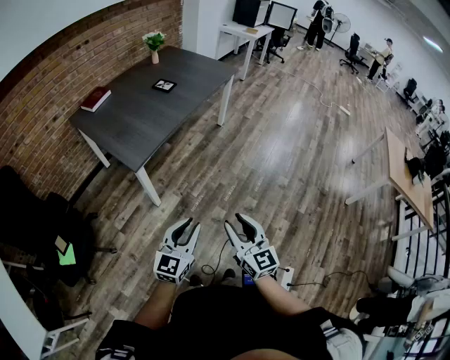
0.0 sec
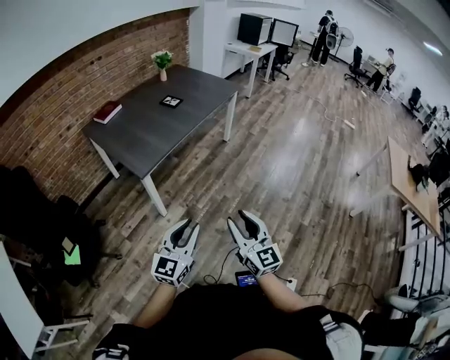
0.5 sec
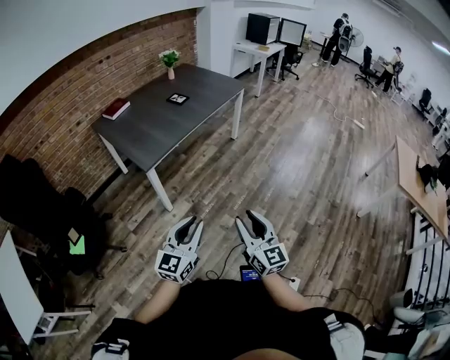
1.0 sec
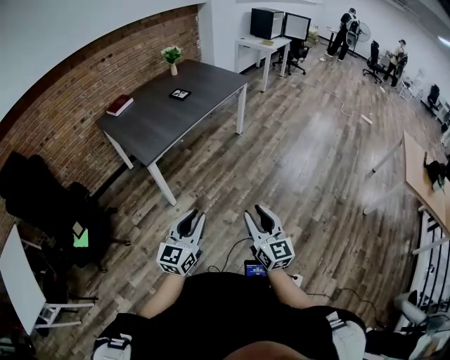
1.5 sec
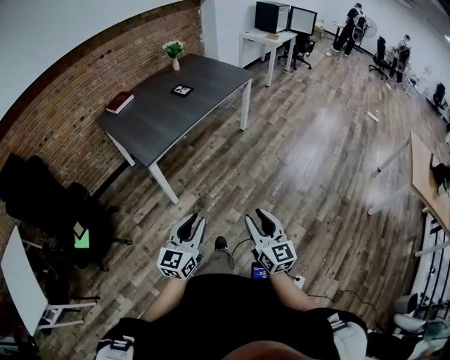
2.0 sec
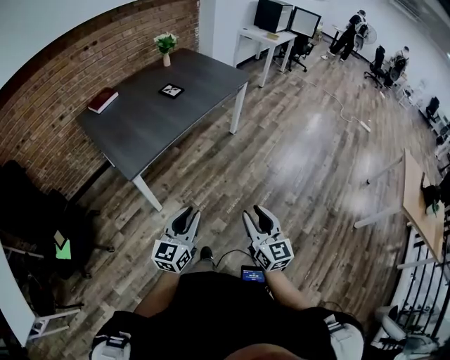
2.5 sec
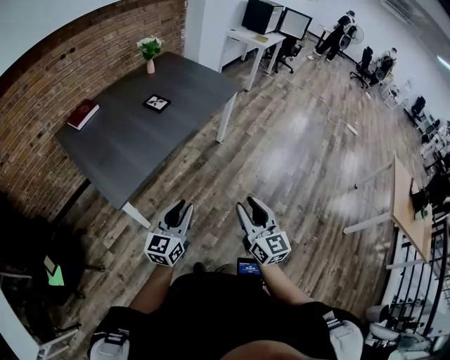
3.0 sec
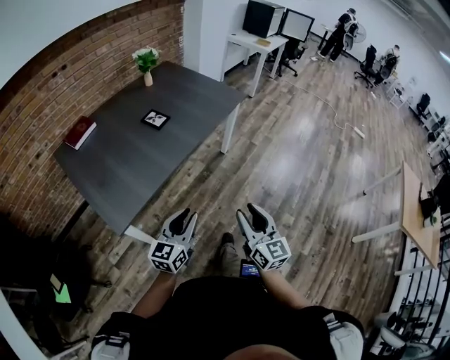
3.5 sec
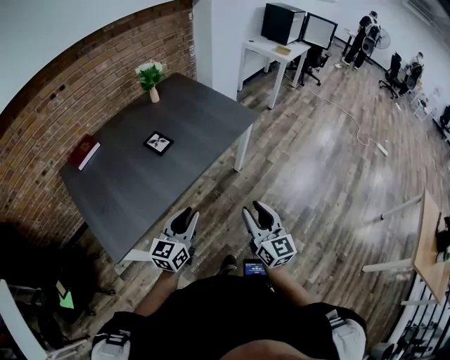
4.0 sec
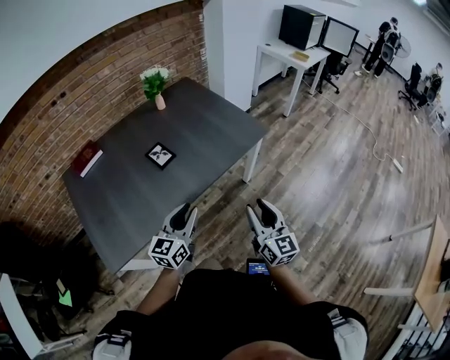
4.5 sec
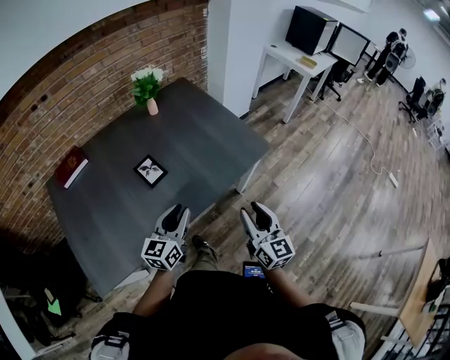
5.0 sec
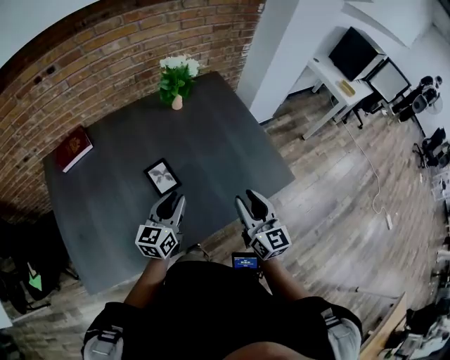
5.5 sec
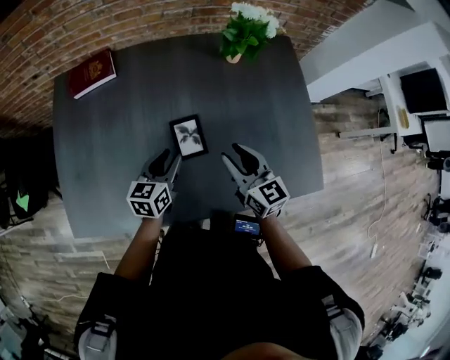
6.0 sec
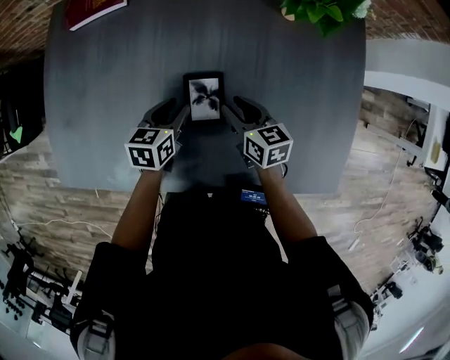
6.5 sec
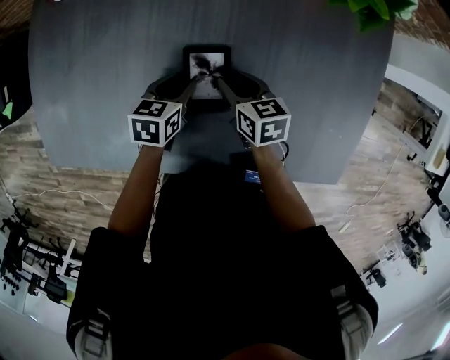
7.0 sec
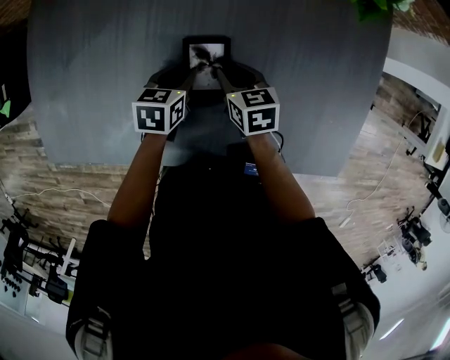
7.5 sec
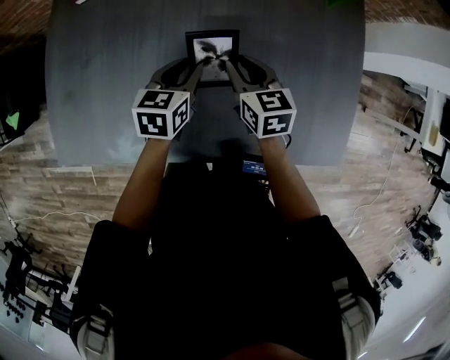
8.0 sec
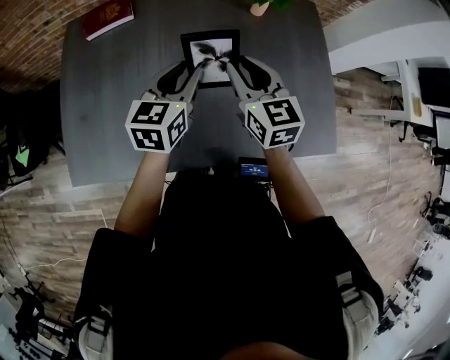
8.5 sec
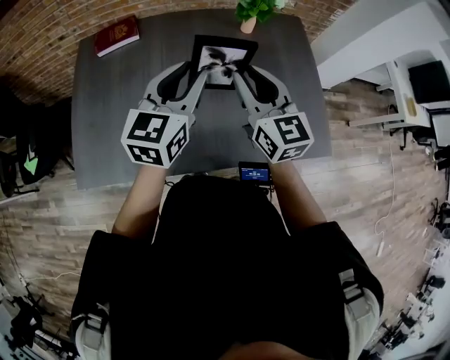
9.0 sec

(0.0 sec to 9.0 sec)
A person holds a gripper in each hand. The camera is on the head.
0.0 sec - 2.0 sec: The left gripper goes approximately 10 cm to the right and backward, while the right gripper travels to the right by approximately 15 cm.
2.0 sec - 4.5 sec: The pair of grippers is taken forward, approximately 80 cm.
4.5 sec - 7.0 sec: Both grippers are carried about 50 cm. The left gripper tilts its fingers about 50 degrees downward, while the right gripper points its fingers roughly 50 degrees further downward.
7.0 sec - 9.0 sec: Both grippers travel together upward, about 40 cm. The right gripper tips its fingers upward by roughly 40 degrees. Meanwhile the left gripper tips its fingers upward by about 40 degrees.

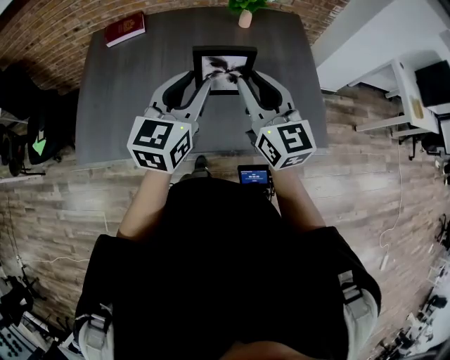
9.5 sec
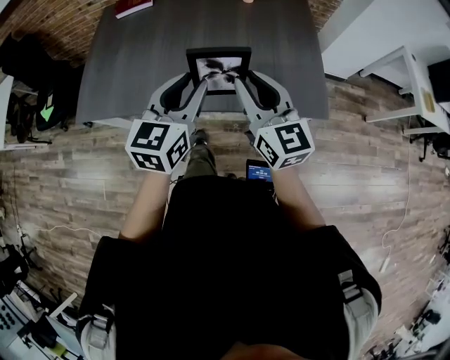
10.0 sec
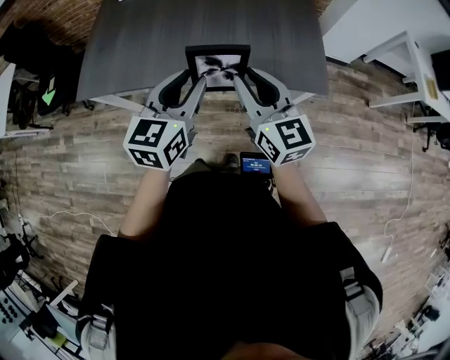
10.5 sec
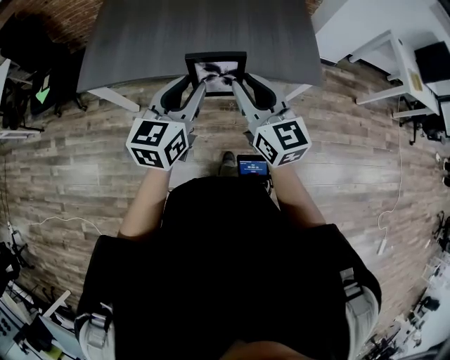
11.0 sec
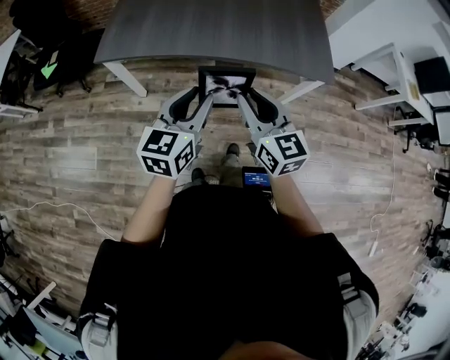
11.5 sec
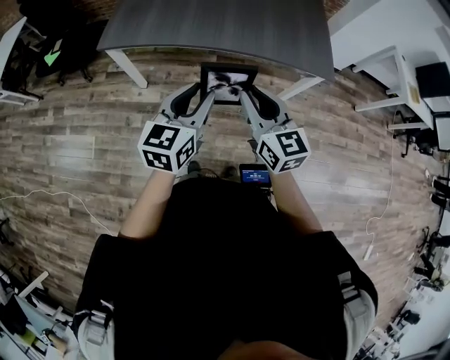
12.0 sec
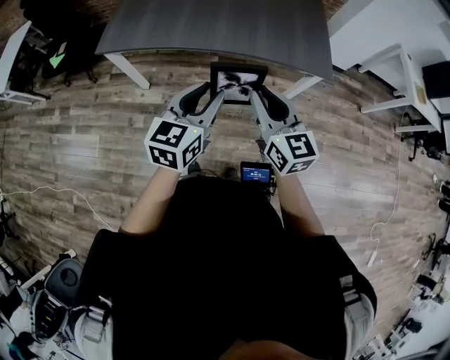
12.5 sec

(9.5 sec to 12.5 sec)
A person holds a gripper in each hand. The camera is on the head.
9.5 sec - 11.0 sec: Both grippers move backward, roughly 30 cm.
11.0 sec - 12.5 sec: The grippers both shift backward by approximately 15 cm.

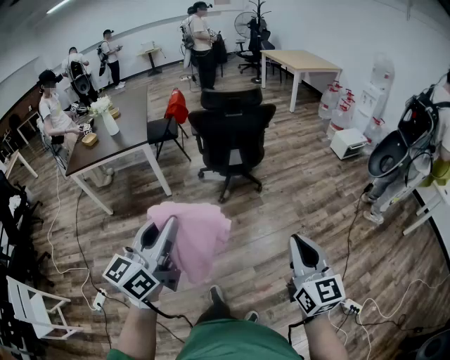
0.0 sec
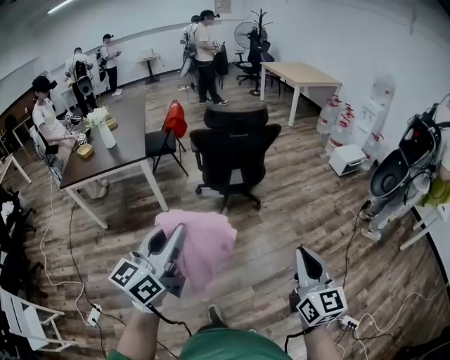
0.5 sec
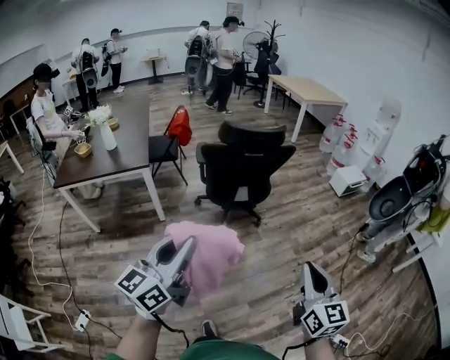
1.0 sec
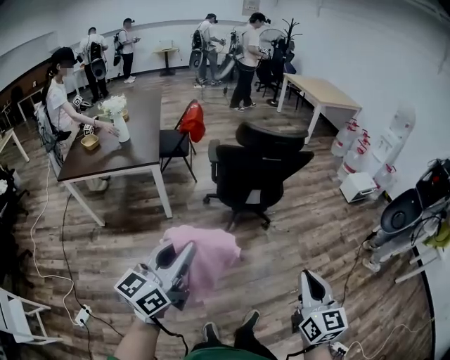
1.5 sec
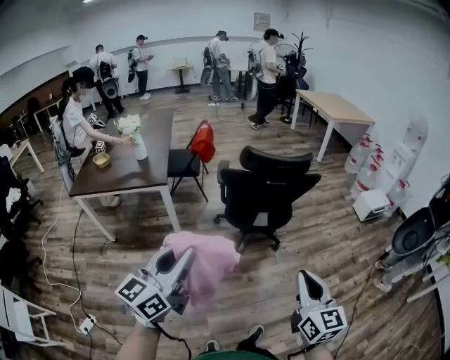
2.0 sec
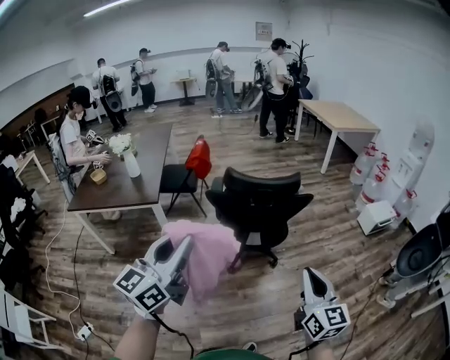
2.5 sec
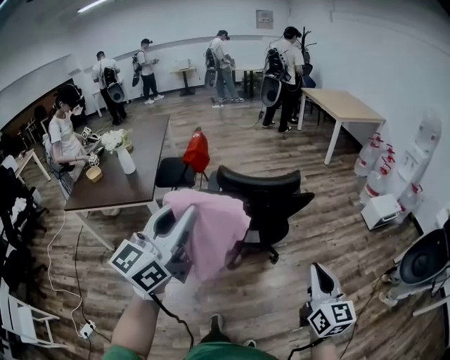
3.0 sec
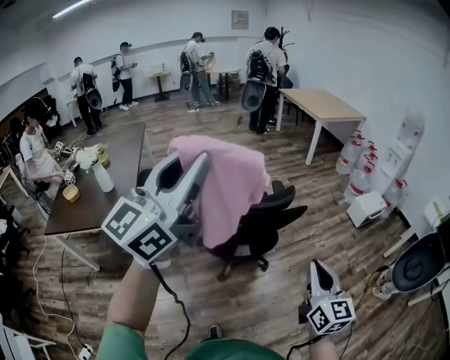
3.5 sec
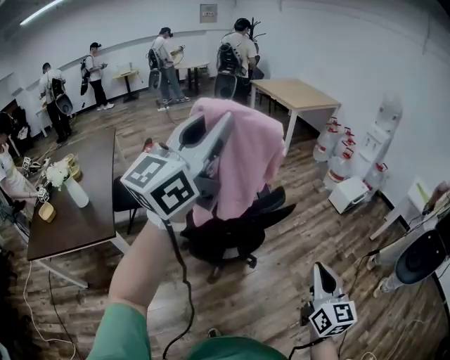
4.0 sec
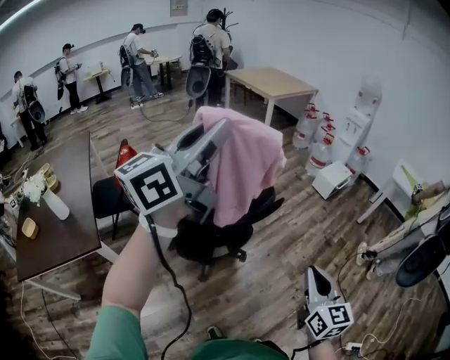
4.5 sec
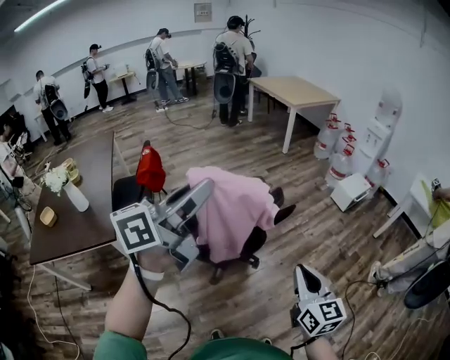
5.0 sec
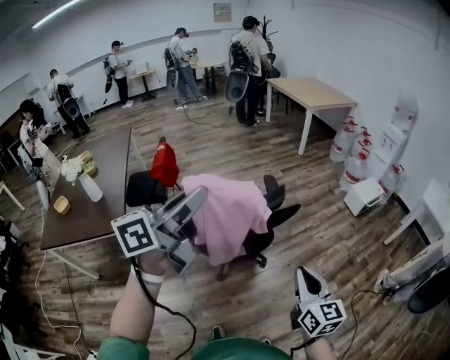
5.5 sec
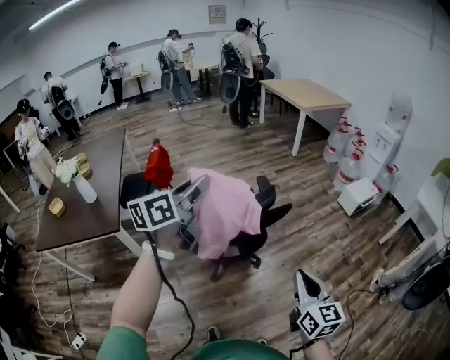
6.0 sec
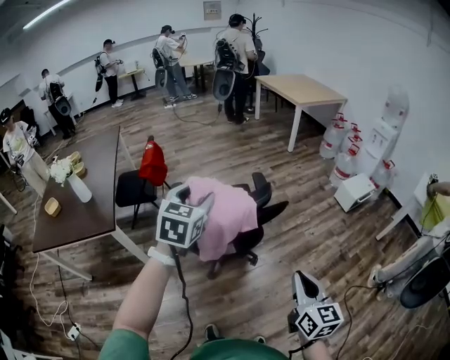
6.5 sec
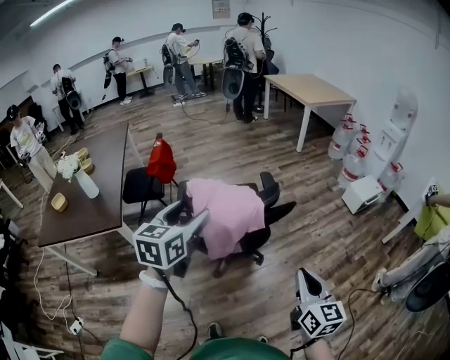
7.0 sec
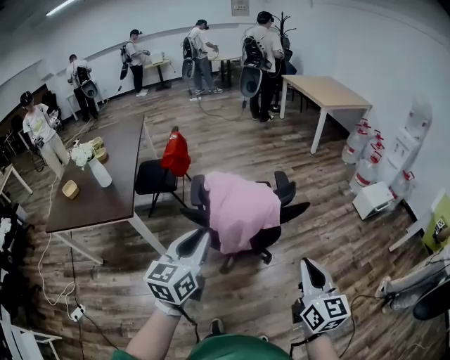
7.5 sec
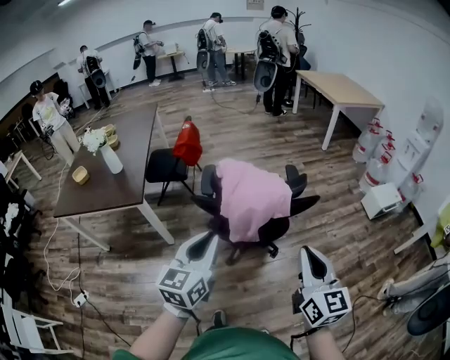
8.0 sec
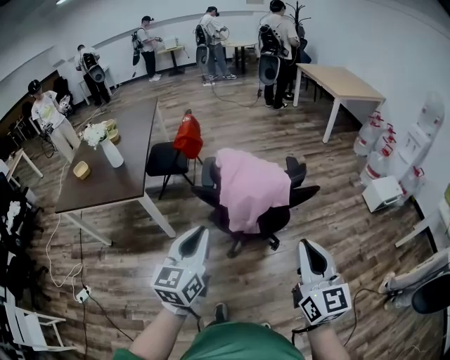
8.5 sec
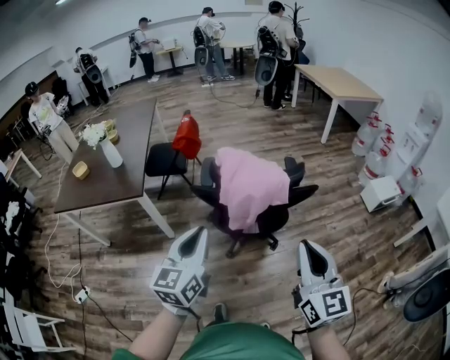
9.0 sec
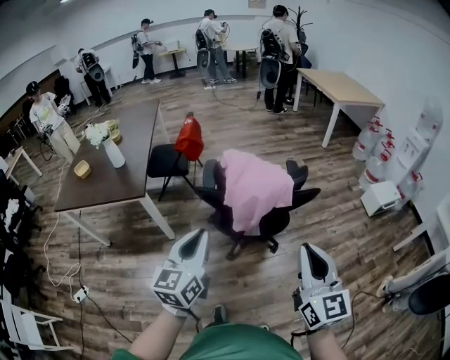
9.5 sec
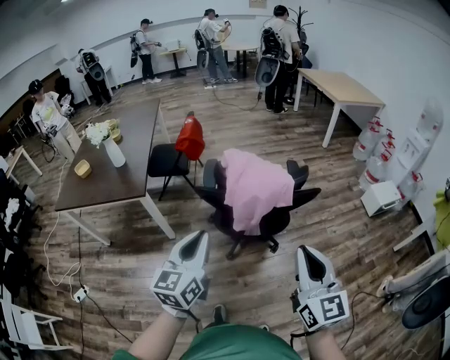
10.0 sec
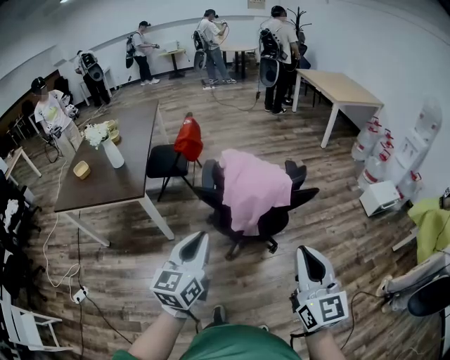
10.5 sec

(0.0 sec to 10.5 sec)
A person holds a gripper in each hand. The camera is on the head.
0.0 sec - 2.0 sec: The two grippers go about 30 cm forward and to the left.
2.0 sec - 4.0 sec: The left gripper moves forward and upward, about 50 cm, and changes its angle by approximately 30 degrees, while the right gripper heads forward, covering about 30 cm, and rotates some 20 degrees.
4.0 sec - 6.5 sec: The left gripper travels downward by approximately 25 cm, angles its fingers downward, by roughly 50 degrees, and opens its fingers, while the right gripper shifts some 5 cm downward.
6.5 sec - 8.5 sec: The left gripper shifts approximately 20 cm backward and to the left, rotates some 30 degrees, and closes up, while the right gripper shifts approximately 10 cm upward and to the left.
8.5 sec - 10.5 sec: The grippers stay close to where they were, moving slightly.

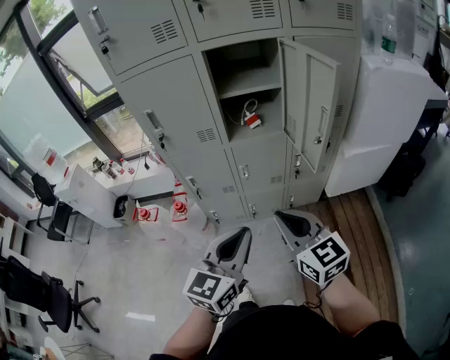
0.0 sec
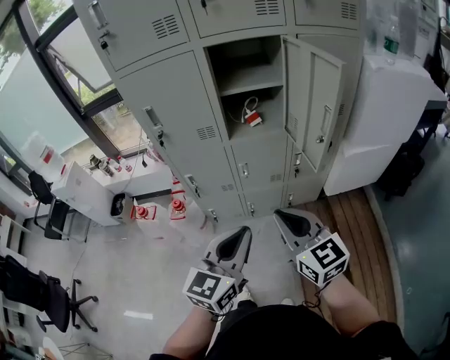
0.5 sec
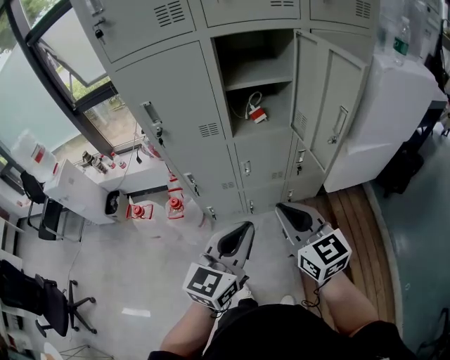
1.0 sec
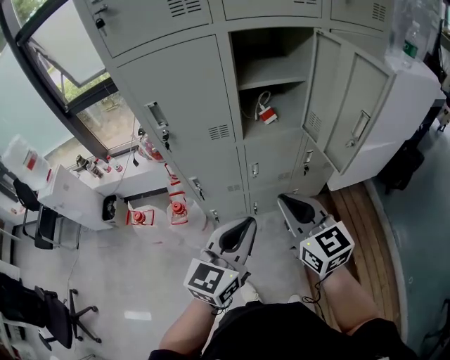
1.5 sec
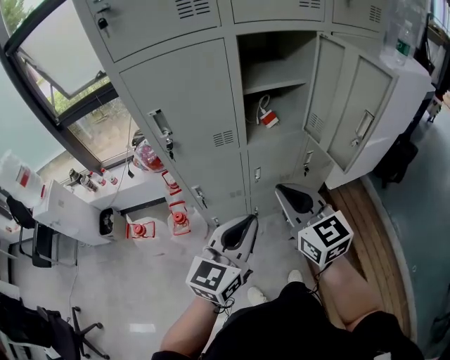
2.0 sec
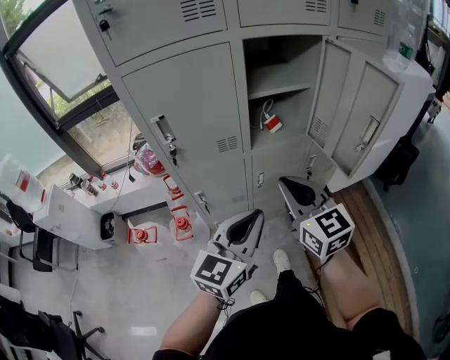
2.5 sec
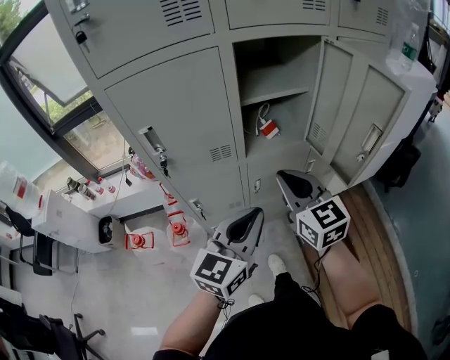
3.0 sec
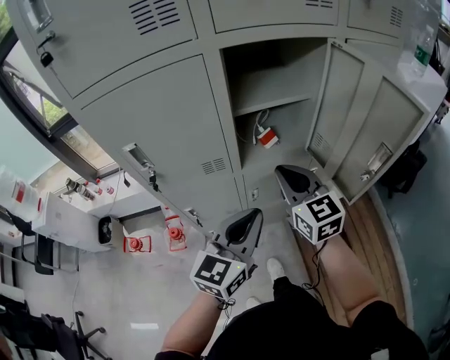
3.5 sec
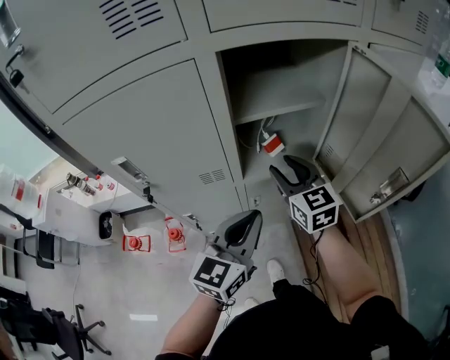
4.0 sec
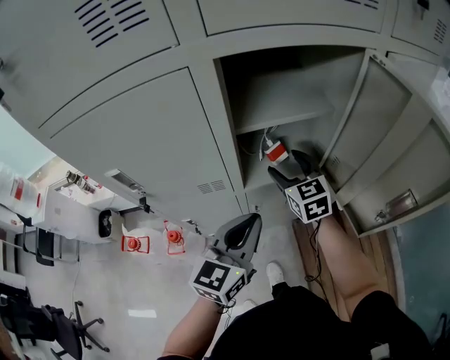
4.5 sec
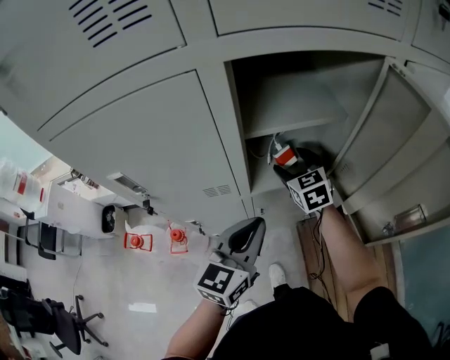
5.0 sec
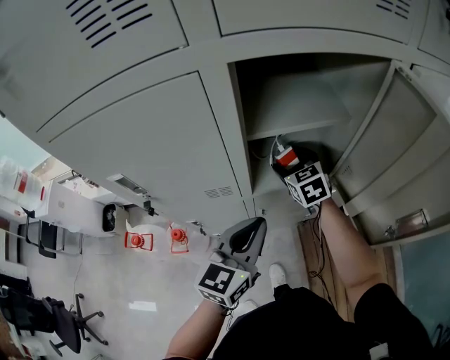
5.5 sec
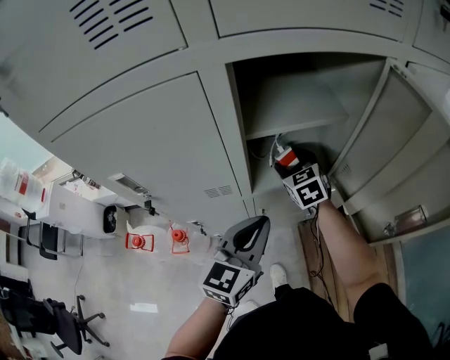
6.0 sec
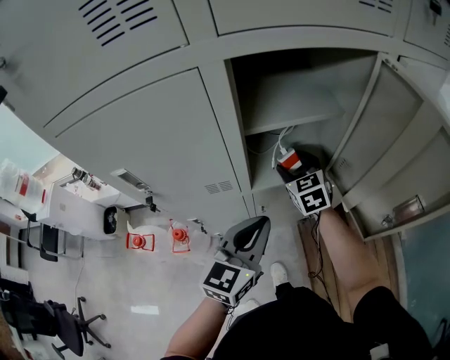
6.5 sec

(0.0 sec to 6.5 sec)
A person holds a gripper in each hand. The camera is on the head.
0.0 sec - 2.0 sec: The two grippers go roughly 15 cm to the left and forward.
2.0 sec - 4.5 sec: The grippers both shift forward by about 30 cm. The right gripper opens up.
